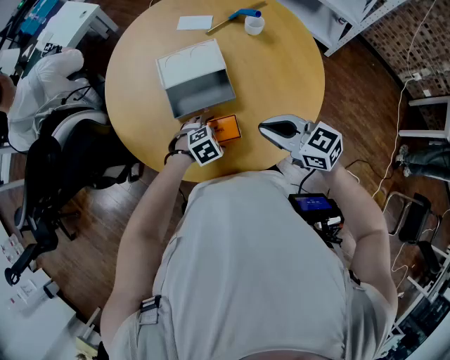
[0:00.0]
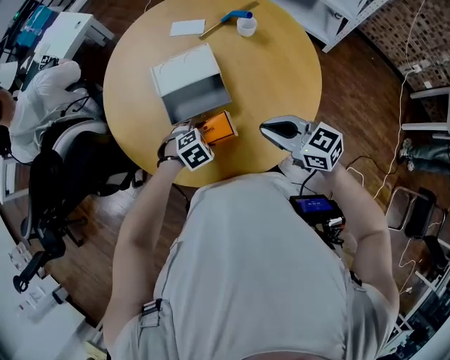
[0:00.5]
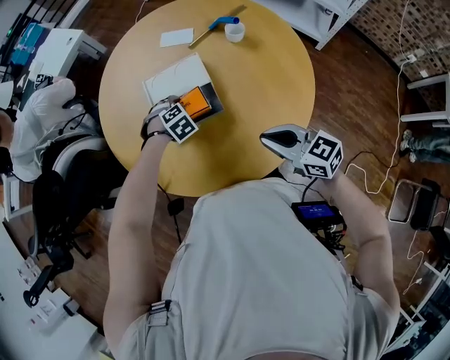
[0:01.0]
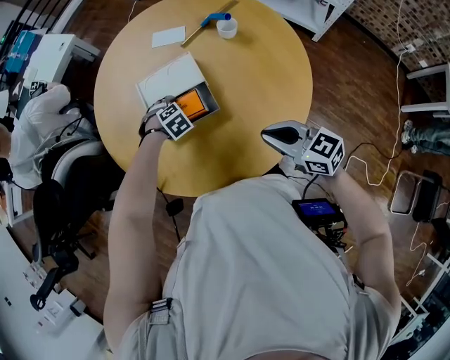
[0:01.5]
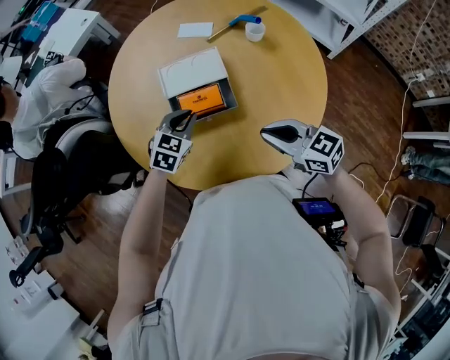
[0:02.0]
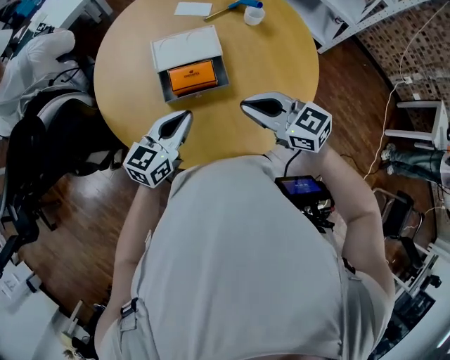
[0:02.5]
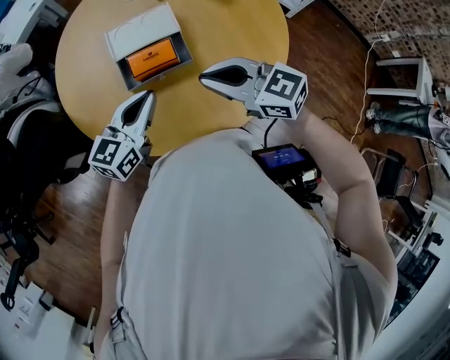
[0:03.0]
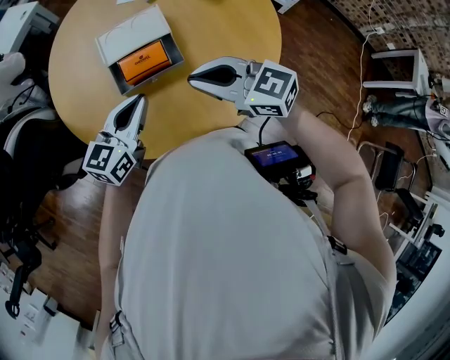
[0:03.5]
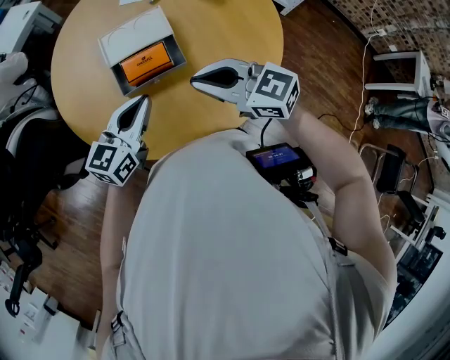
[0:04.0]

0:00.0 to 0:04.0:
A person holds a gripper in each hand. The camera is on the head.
0:00.0 to 0:02.0: The left gripper heads upward, covering roughly 15 cm, changes its angle by about 40 degrees, and closes up.
0:02.0 to 0:04.0: The right gripper moves to the left, roughly 5 cm, while the left gripper goes roughly 10 cm upward and backward, and turns by roughly 40 degrees.

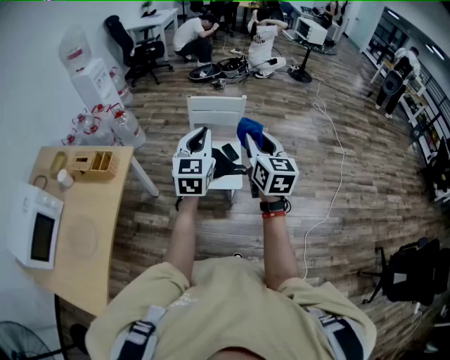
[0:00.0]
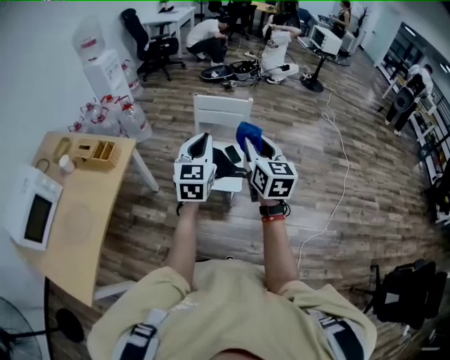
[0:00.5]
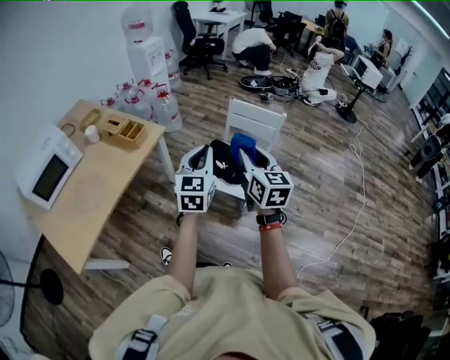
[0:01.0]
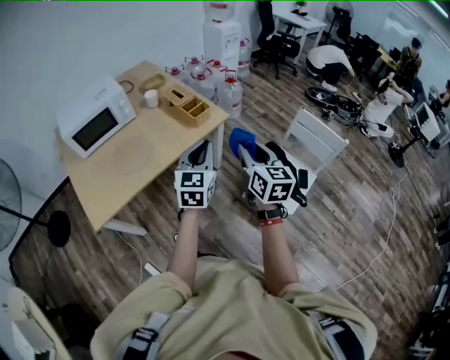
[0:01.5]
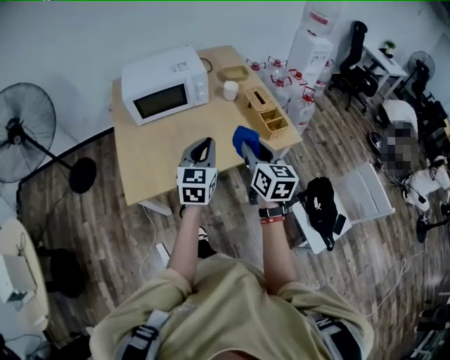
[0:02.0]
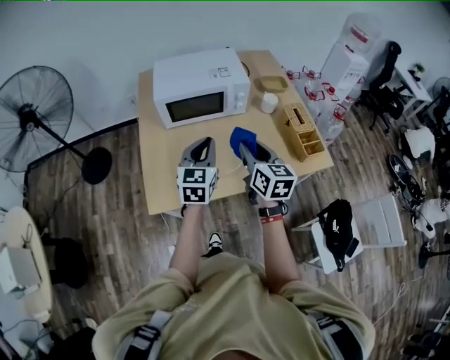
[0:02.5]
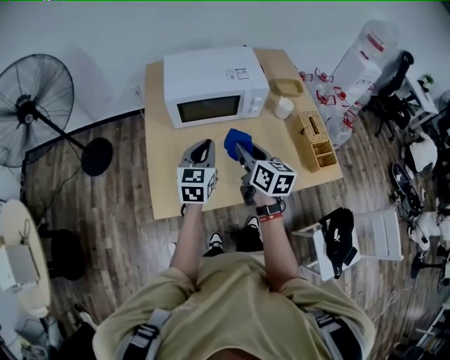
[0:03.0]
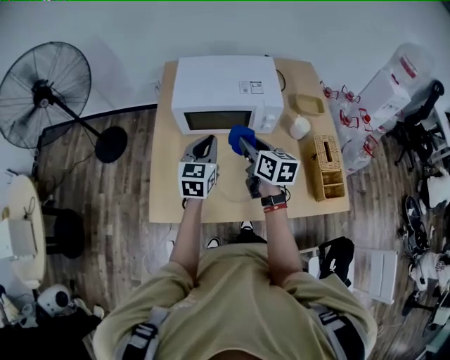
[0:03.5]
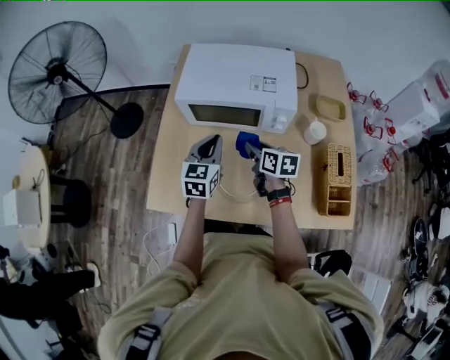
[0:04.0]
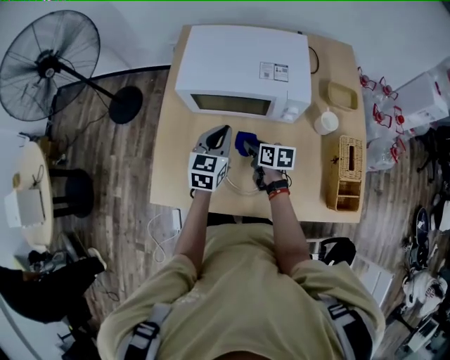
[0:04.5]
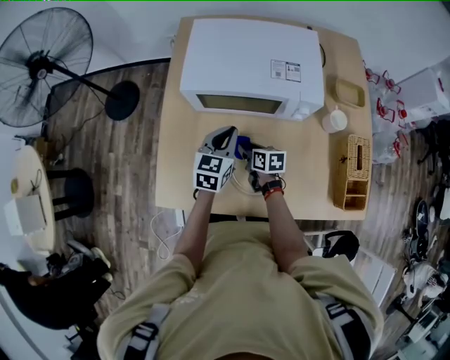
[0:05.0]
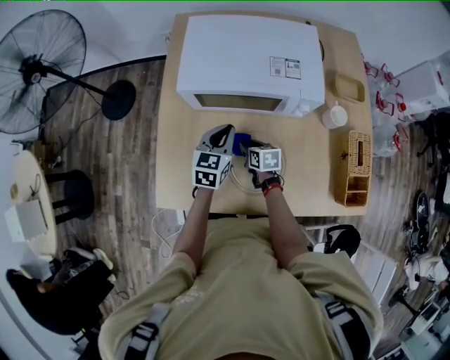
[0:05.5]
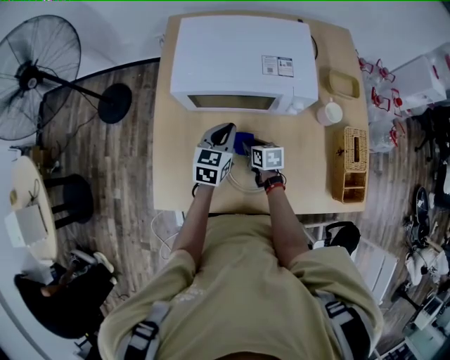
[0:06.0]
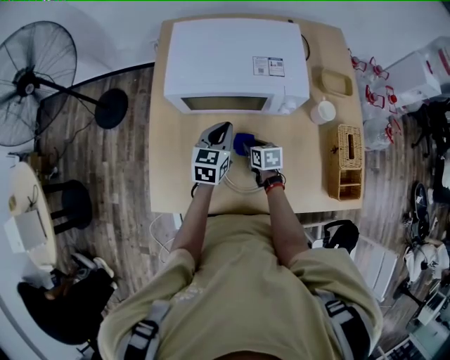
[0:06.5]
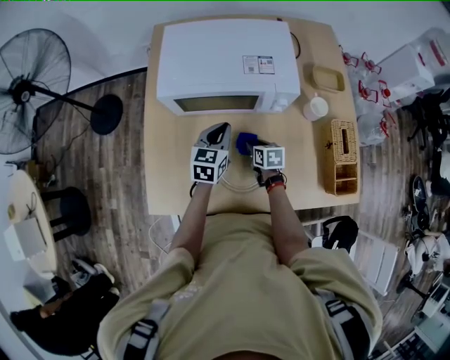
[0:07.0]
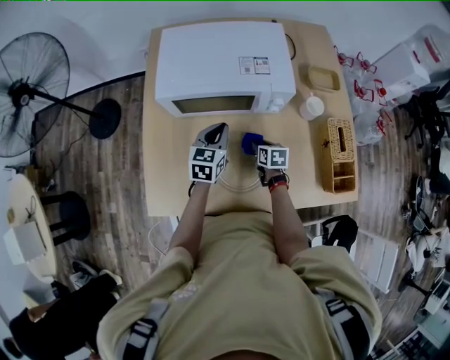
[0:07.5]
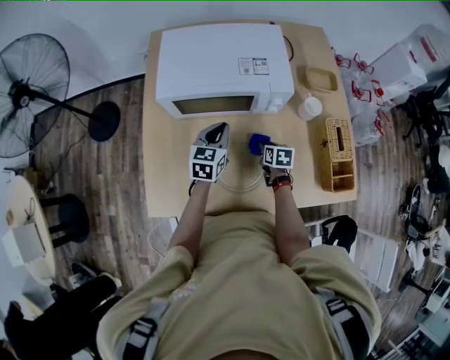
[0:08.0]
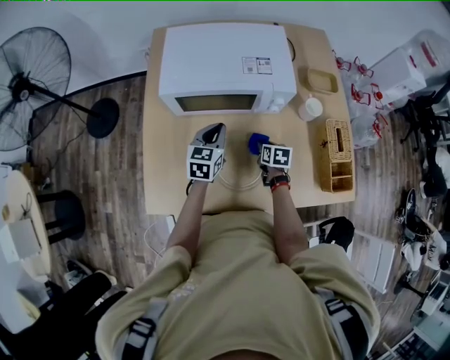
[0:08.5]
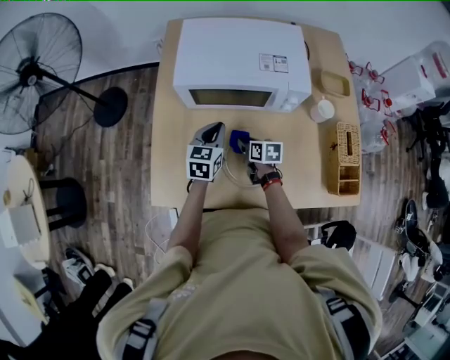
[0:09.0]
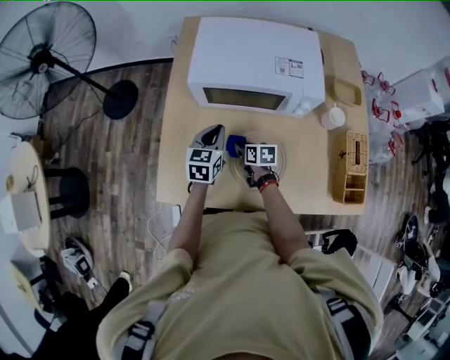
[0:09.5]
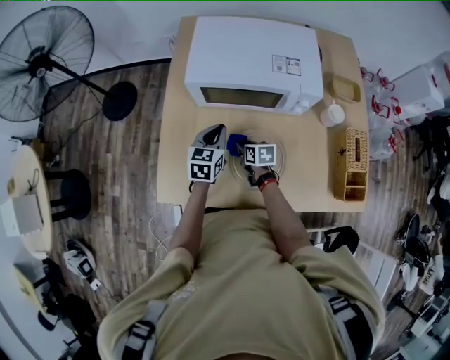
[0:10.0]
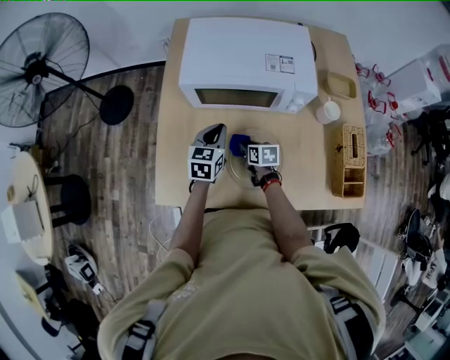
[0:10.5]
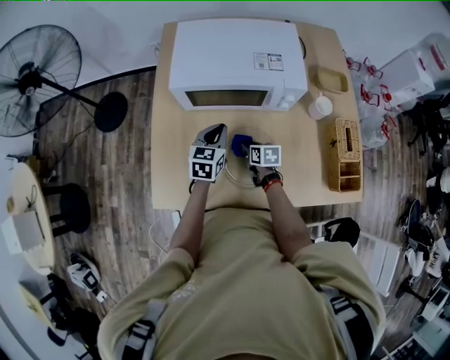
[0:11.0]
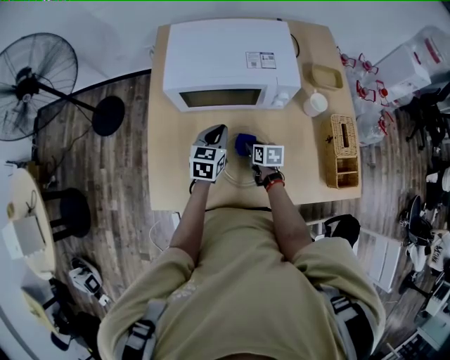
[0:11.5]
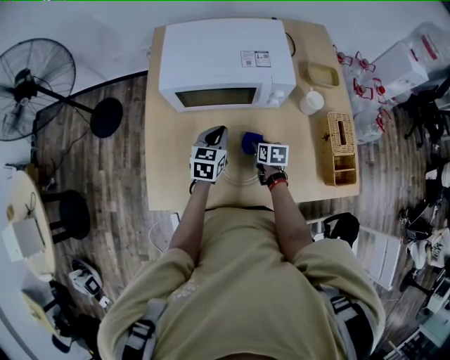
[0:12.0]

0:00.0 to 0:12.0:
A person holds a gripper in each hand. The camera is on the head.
0:00.0 to 0:02.0: The two grippers travel together, about 60 cm. The left gripper turns by about 60 degrees, while the right gripper changes its angle by about 70 degrees.
0:02.0 to 0:04.0: The right gripper ends up some 50 cm from where it was, and rotates some 50 degrees. Meanwhile the left gripper moves about 35 cm, and changes its angle by about 30 degrees.
0:04.0 to 0:06.0: The right gripper moves downward, roughly 20 cm. Meanwhile the left gripper goes some 10 cm downward and forward.
0:06.0 to 0:08.0: The right gripper travels to the right by roughly 15 cm.
0:08.0 to 0:10.0: The right gripper moves to the left, roughly 20 cm; the left gripper travels to the left by some 10 cm.
0:10.0 to 0:12.0: The left gripper is displaced to the right by roughly 10 cm; the right gripper is displaced to the right by roughly 15 cm.

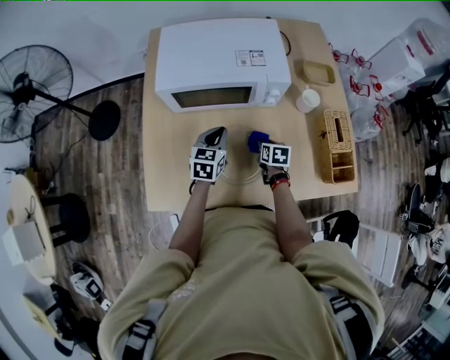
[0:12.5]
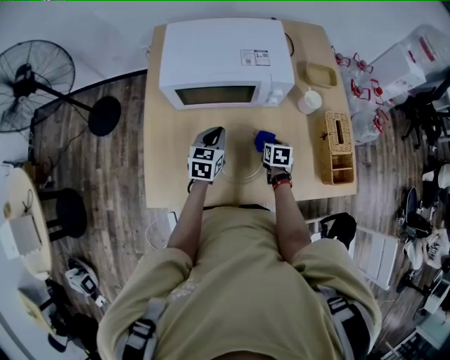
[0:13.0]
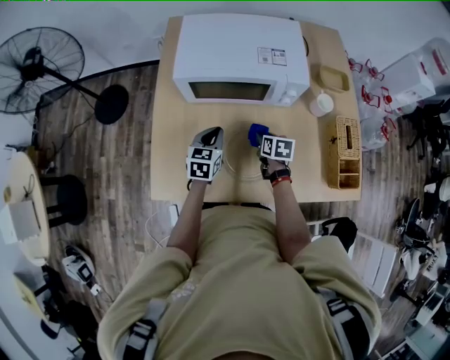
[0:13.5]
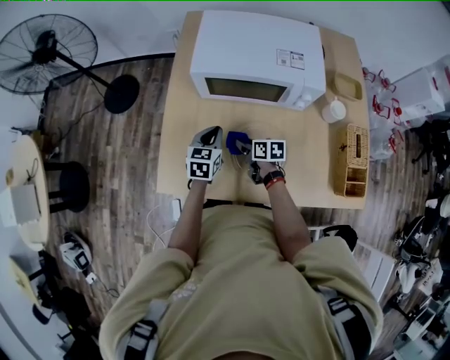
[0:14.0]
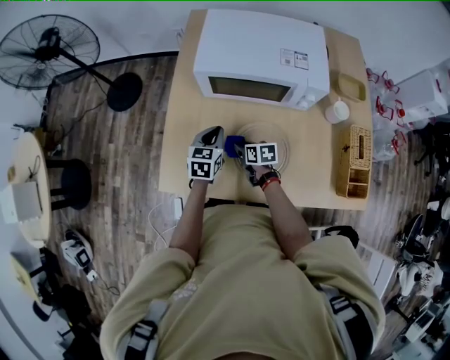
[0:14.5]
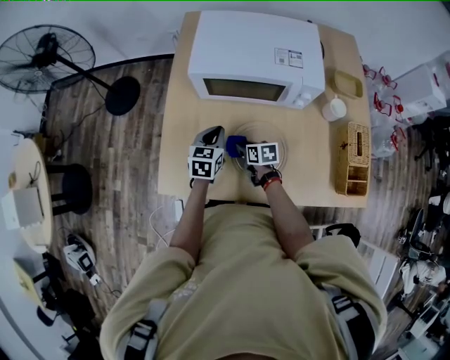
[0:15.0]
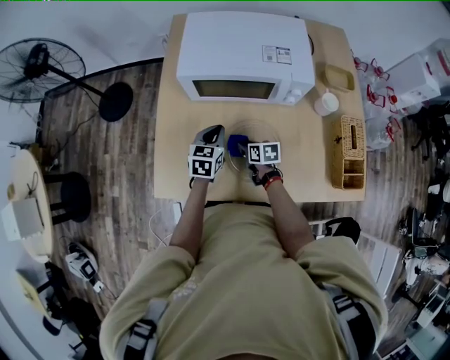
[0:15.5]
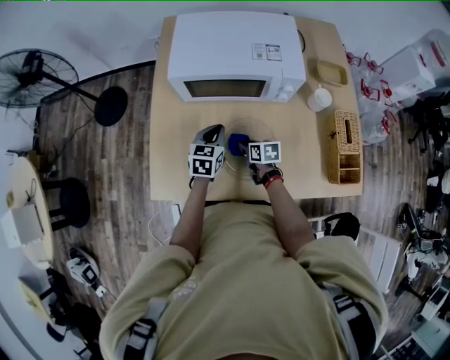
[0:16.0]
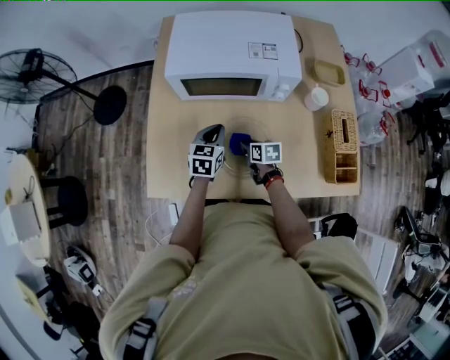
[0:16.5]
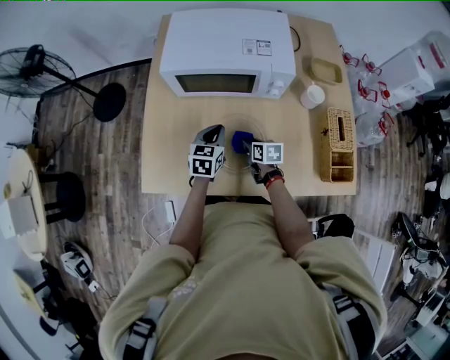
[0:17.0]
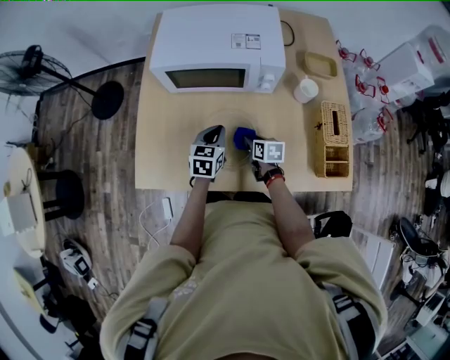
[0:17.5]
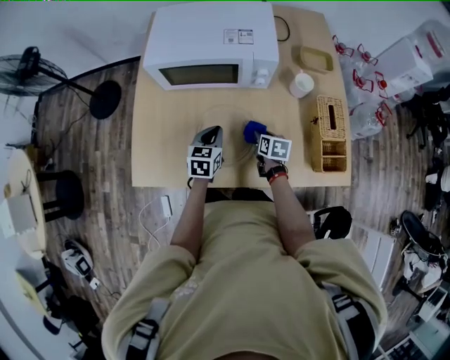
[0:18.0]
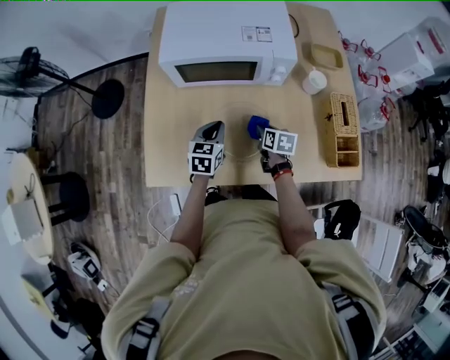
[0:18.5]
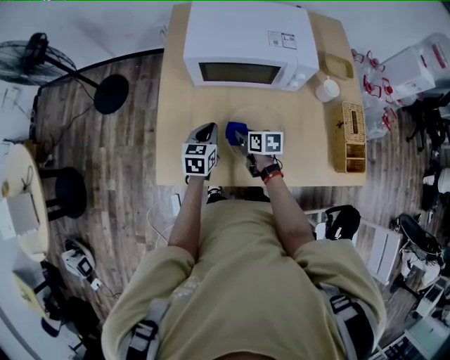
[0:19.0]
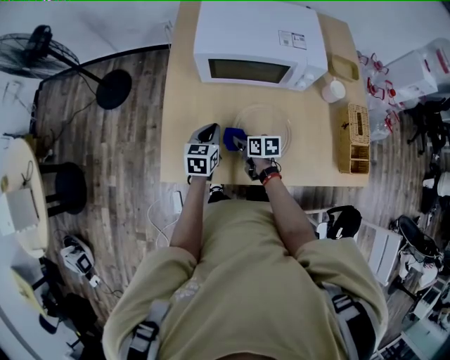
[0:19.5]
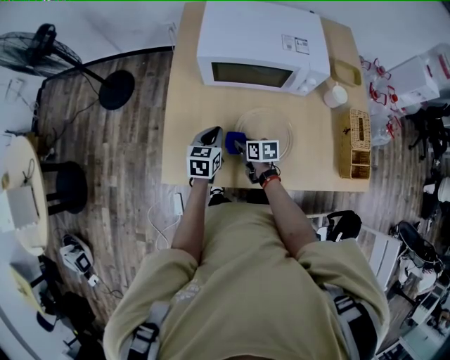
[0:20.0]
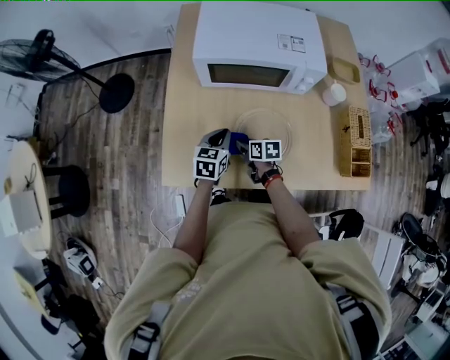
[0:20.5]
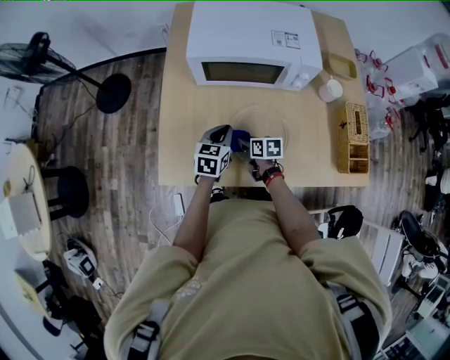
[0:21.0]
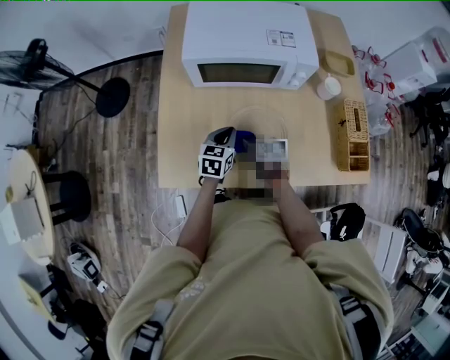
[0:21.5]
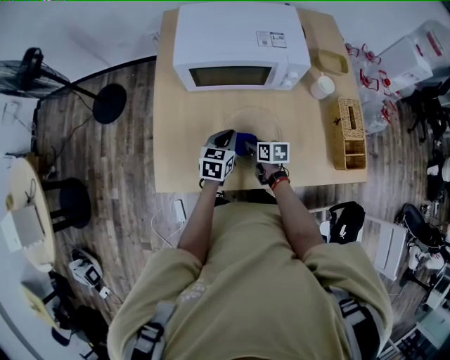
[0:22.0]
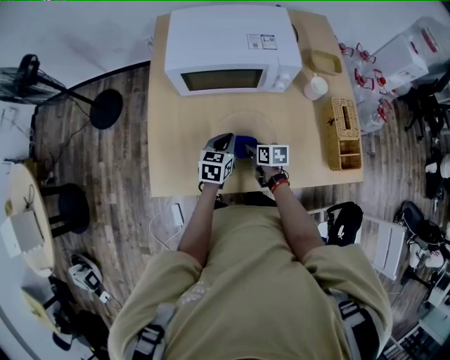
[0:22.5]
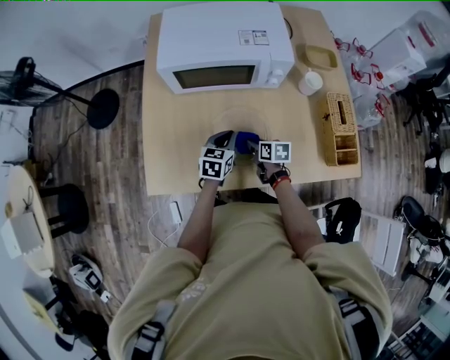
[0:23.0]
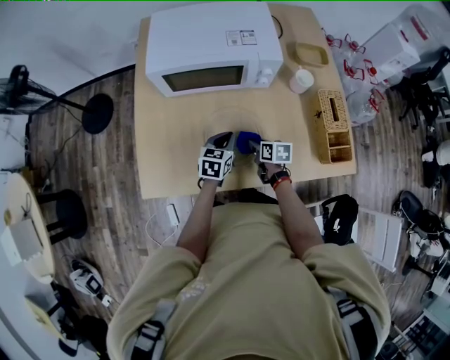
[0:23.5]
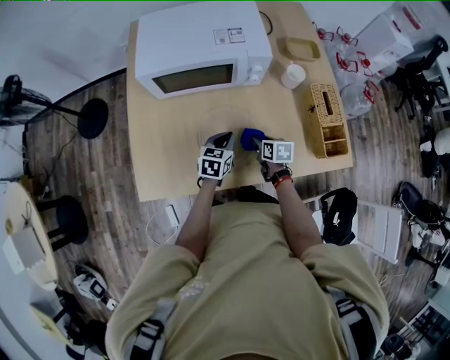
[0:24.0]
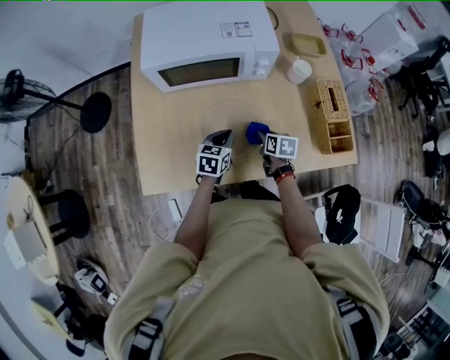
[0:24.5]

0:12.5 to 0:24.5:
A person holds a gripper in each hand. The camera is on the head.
0:12.5 to 0:14.5: The left gripper shifts by some 10 cm; the right gripper changes place by some 20 cm, and swivels about 30 degrees.
0:14.5 to 0:16.5: Both grippers move to the right, some 10 cm.
0:16.5 to 0:18.5: The right gripper shifts some 10 cm to the right.
0:18.5 to 0:20.5: The right gripper heads to the left, covering approximately 20 cm, while the left gripper travels to the left by approximately 10 cm.
0:20.5 to 0:22.5: The grippers both shift to the right by roughly 10 cm.
0:22.5 to 0:24.5: The right gripper shifts some 10 cm to the right; the left gripper shifts about 5 cm to the right.
